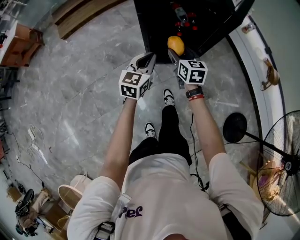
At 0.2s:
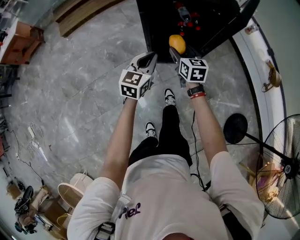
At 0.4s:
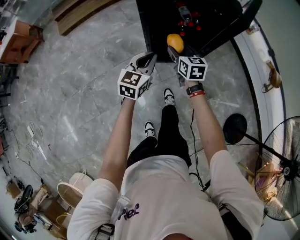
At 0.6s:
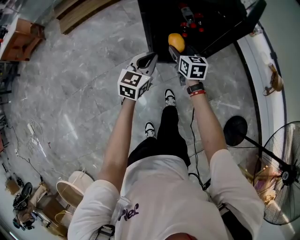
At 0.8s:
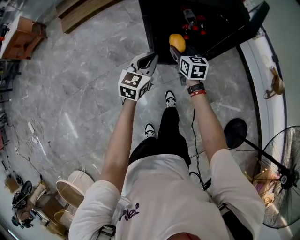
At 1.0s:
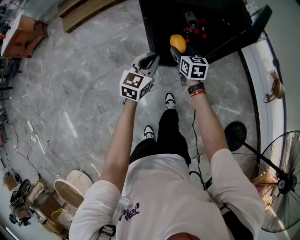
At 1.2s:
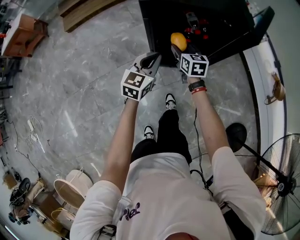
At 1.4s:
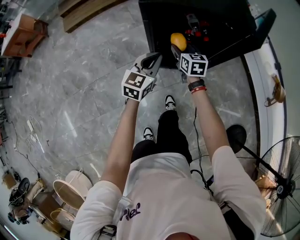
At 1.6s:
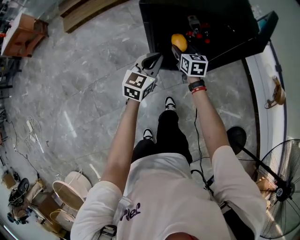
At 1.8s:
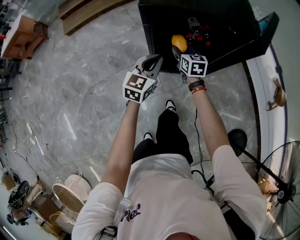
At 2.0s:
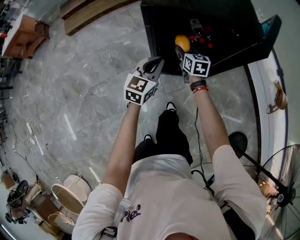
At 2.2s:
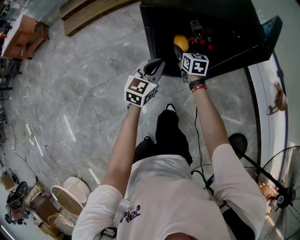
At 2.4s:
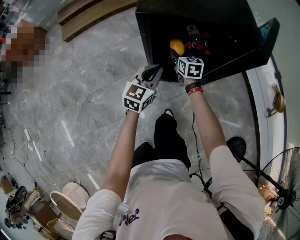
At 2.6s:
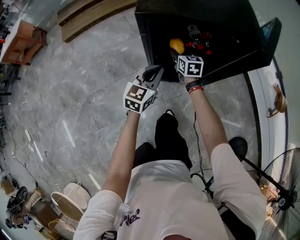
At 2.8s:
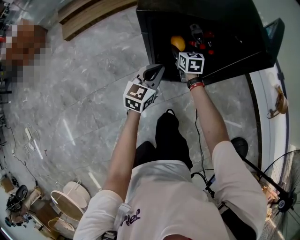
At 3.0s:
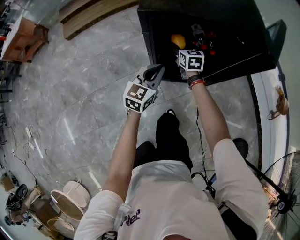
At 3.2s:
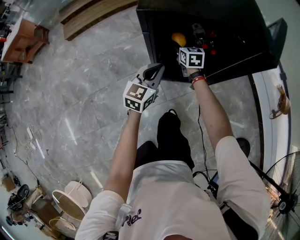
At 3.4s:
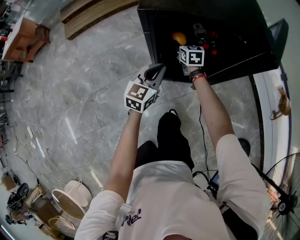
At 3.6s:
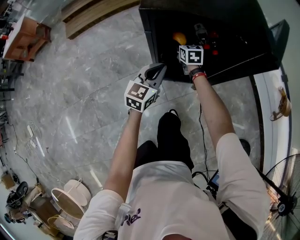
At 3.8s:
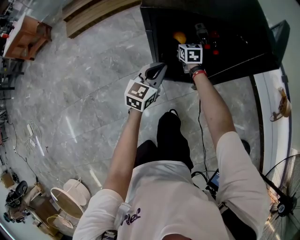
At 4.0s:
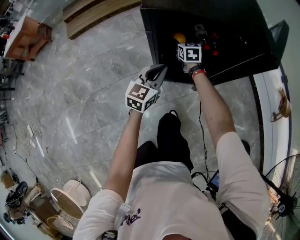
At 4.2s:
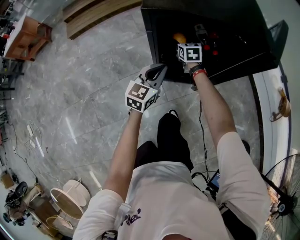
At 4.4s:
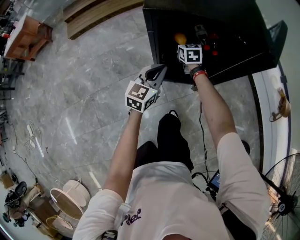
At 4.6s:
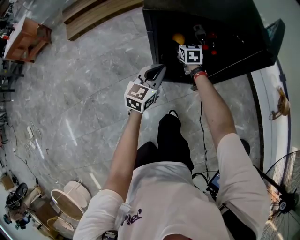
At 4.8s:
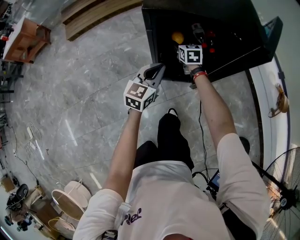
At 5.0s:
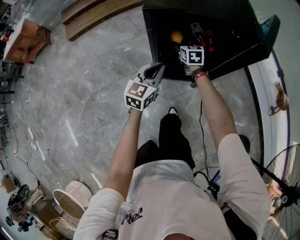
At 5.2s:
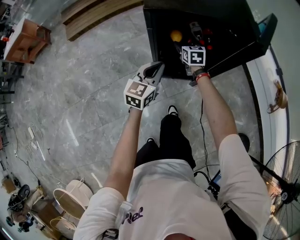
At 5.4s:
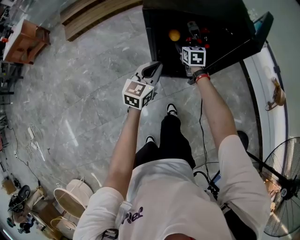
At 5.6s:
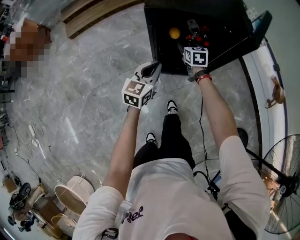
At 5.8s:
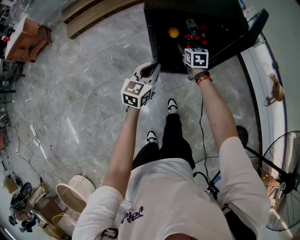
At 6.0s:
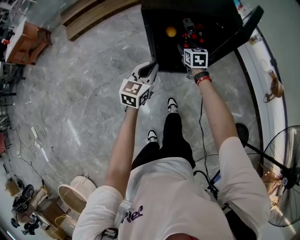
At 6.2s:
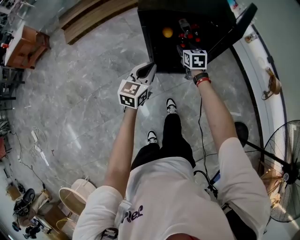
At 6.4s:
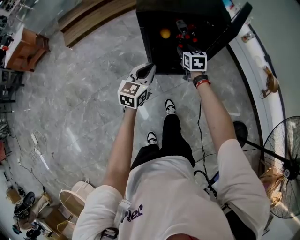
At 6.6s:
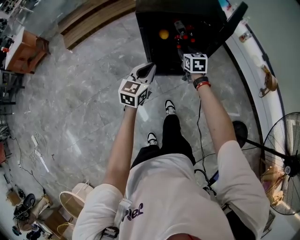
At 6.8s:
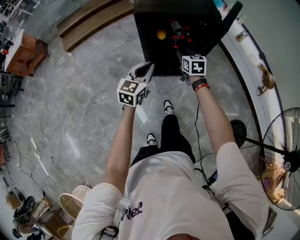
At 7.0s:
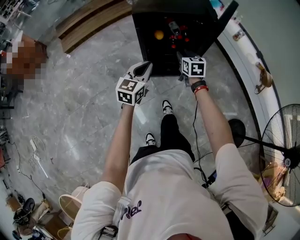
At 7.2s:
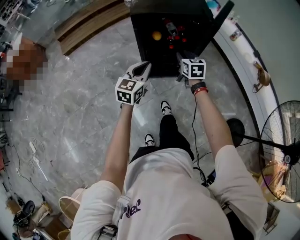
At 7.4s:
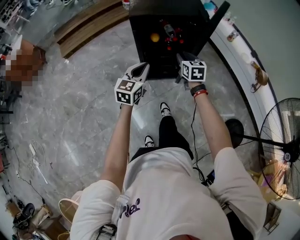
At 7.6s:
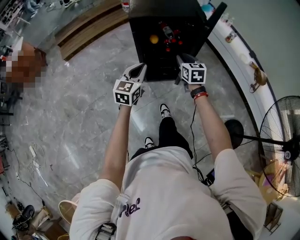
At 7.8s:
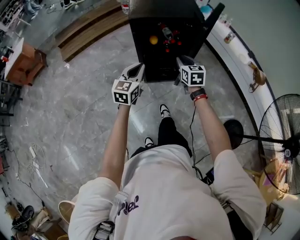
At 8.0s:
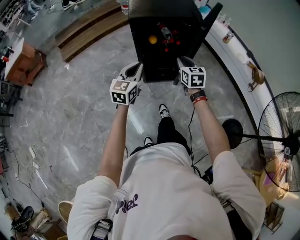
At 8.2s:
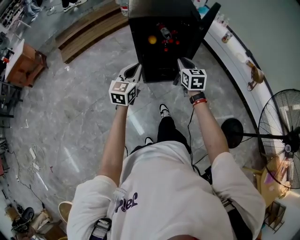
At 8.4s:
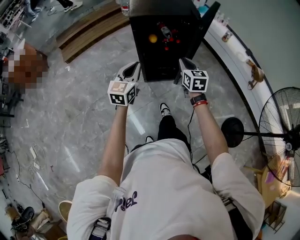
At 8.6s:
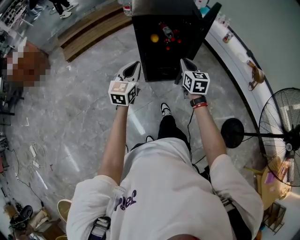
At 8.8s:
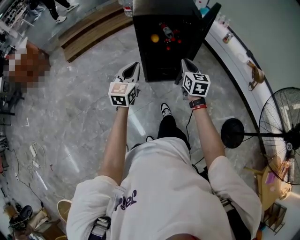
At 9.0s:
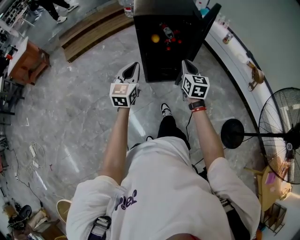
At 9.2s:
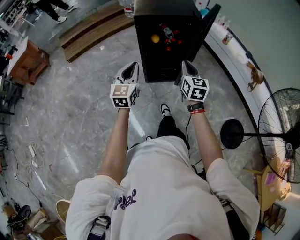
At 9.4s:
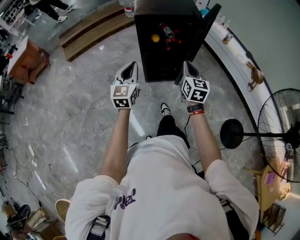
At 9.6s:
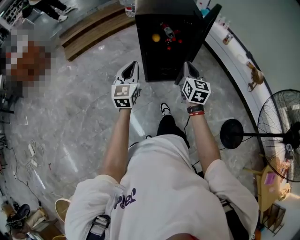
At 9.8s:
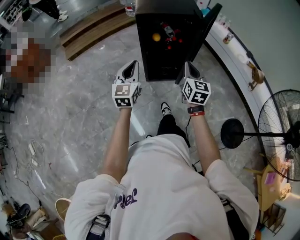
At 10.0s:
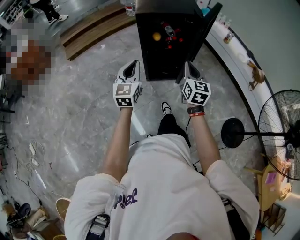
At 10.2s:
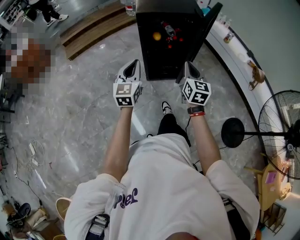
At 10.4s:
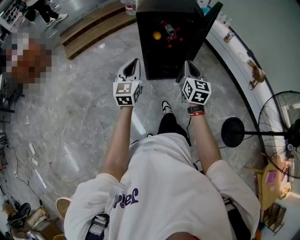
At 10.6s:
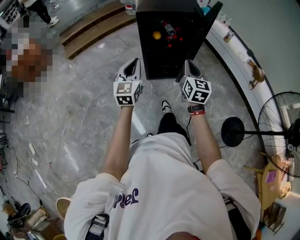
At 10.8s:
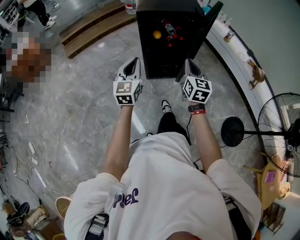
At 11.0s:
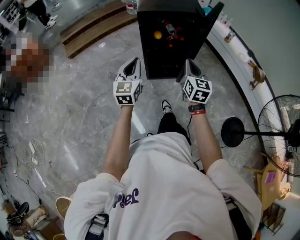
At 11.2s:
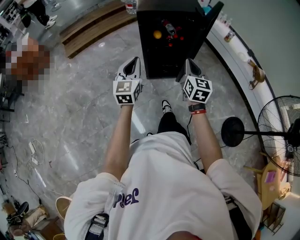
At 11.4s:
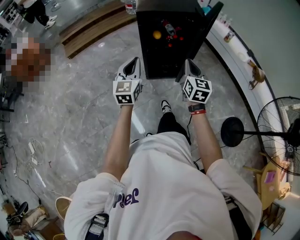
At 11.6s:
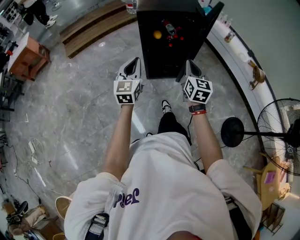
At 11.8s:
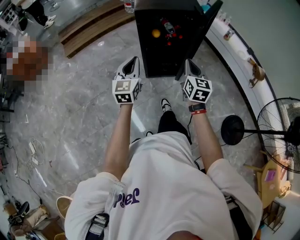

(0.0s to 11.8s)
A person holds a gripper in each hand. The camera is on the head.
0.0s - 1.4s: The left gripper goes roughly 10 cm forward. Meanwhile the right gripper shifts some 15 cm forward and downward.
1.4s - 3.0s: The left gripper travels downward and forward by approximately 10 cm. The right gripper goes about 15 cm forward and downward.
3.0s - 4.4s: The grippers move only a little.
4.4s - 6.0s: The right gripper is displaced backward, upward and to the right by some 20 cm. The left gripper shifts roughly 15 cm upward and backward.
6.0s - 7.4s: The right gripper moves backward, upward and to the right, about 20 cm, and closes its fingers; the left gripper heads backward and upward, covering some 10 cm.
7.4s - 8.8s: Both grippers travel together backward and upward, some 15 cm.
8.8s - 10.4s: The right gripper shifts by about 5 cm.
10.4s - 11.8s: The two grippers keep their place.

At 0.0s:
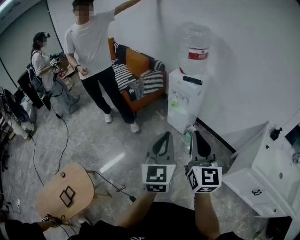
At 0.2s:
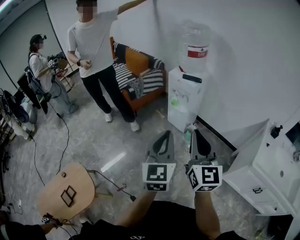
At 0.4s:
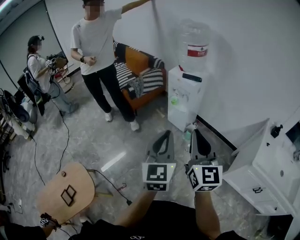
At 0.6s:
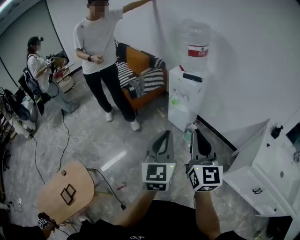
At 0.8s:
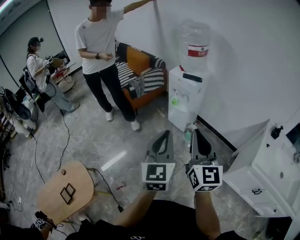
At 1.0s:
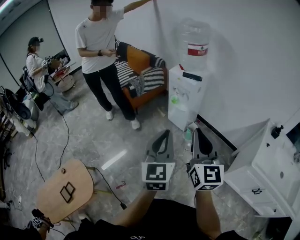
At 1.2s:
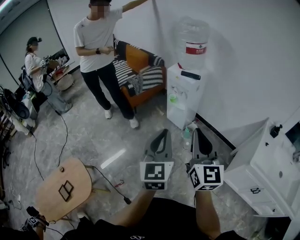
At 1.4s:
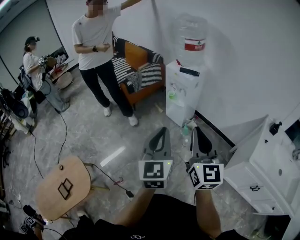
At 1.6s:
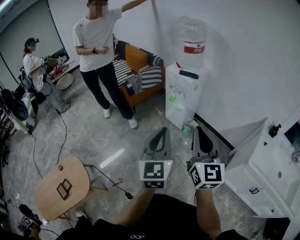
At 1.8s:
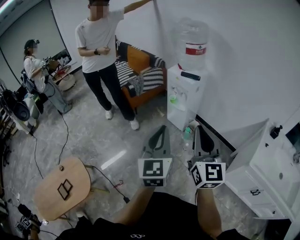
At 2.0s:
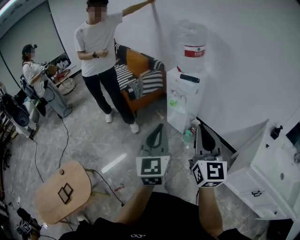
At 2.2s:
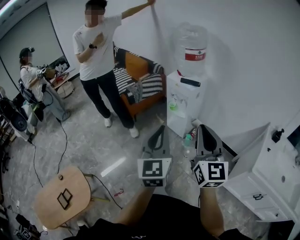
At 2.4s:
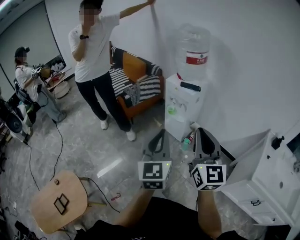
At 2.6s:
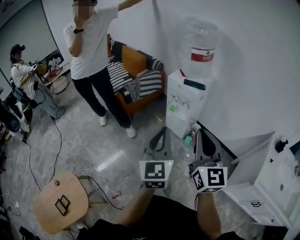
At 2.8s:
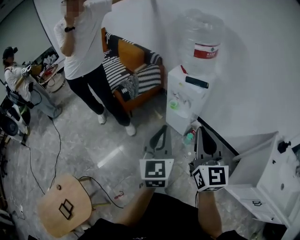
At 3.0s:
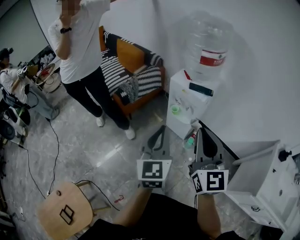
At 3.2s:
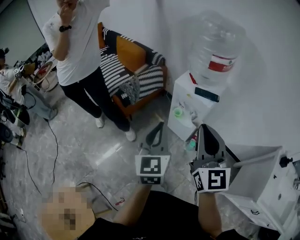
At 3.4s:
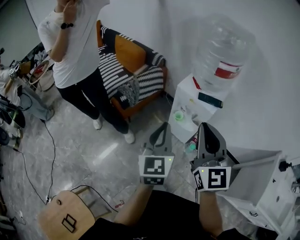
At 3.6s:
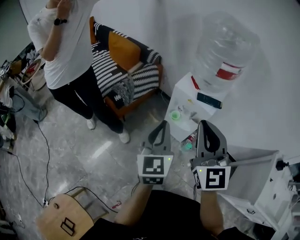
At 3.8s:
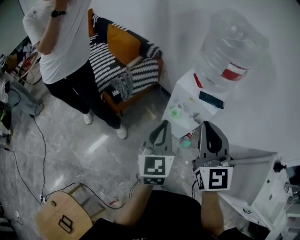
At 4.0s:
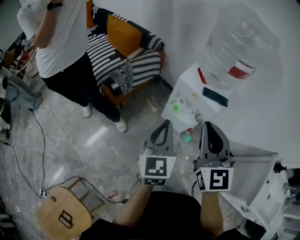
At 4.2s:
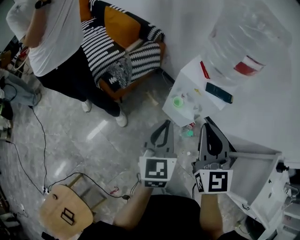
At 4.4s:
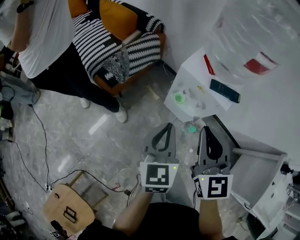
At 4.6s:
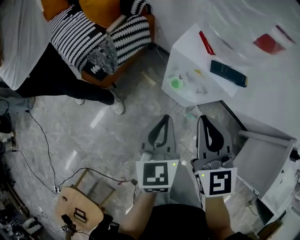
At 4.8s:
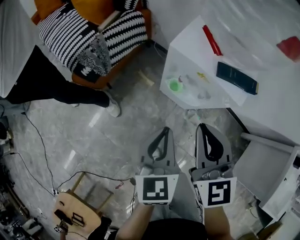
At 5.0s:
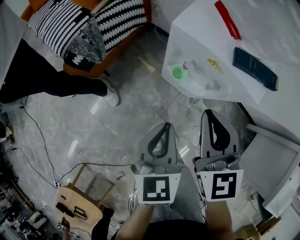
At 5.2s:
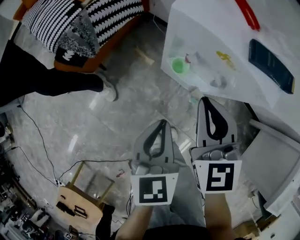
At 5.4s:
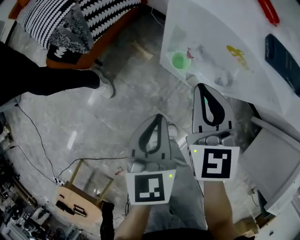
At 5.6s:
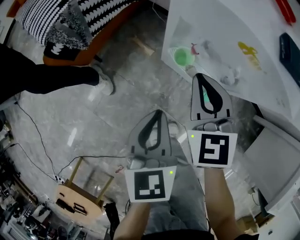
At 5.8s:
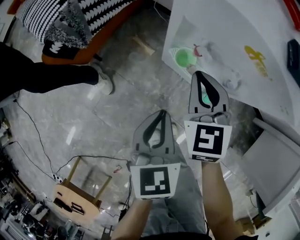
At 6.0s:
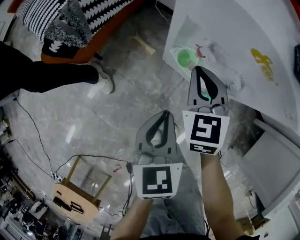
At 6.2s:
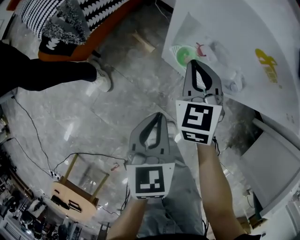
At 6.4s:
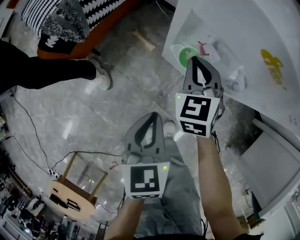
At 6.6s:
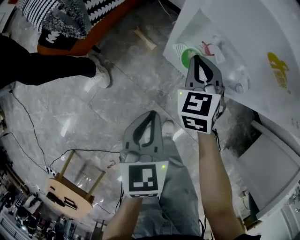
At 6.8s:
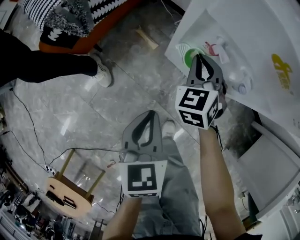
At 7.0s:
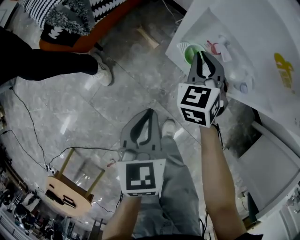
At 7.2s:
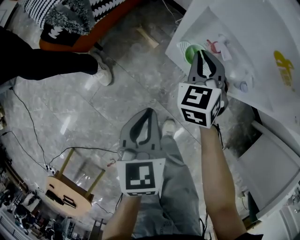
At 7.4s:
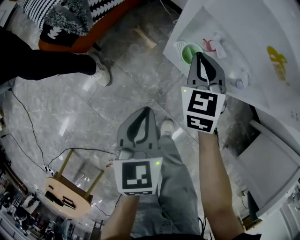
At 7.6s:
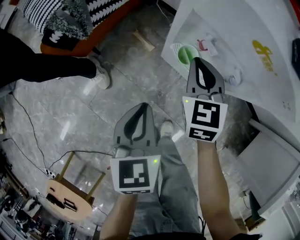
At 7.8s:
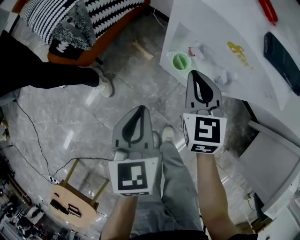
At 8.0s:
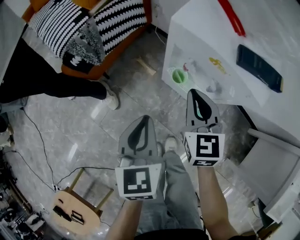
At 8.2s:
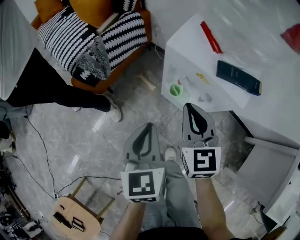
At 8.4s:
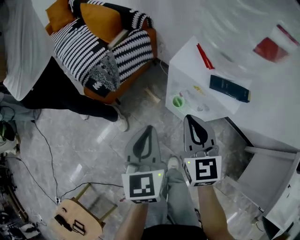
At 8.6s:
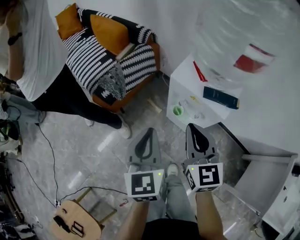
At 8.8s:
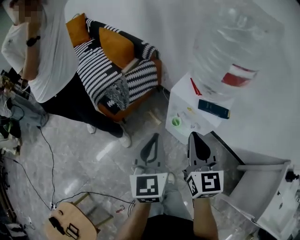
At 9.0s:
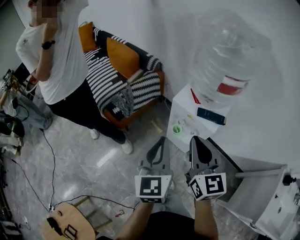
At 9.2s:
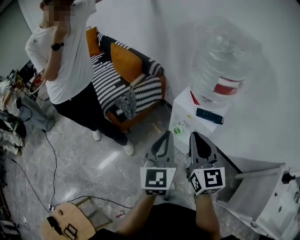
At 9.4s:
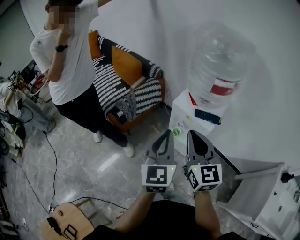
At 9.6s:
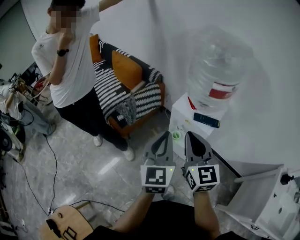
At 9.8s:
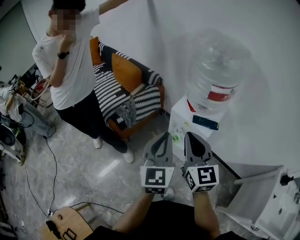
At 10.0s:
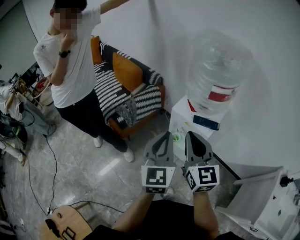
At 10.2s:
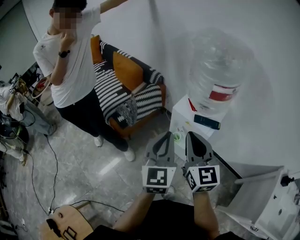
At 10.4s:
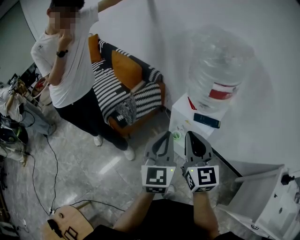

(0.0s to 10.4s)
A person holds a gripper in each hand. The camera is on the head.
0.0s - 1.4s: There are only small adjustments of the grippers.
1.4s - 3.0s: The grippers both shift forward by some 30 cm.
3.0s - 4.4s: Both grippers move forward and downward, roughly 25 cm.
4.4s - 6.0s: The left gripper goes roughly 30 cm downward, and changes its angle by some 20 degrees; the right gripper is displaced downward and forward by about 40 cm, and turns by approximately 20 degrees.
6.0s - 7.4s: The left gripper shifts roughly 5 cm to the left.
7.4s - 9.0s: The right gripper heads upward and backward, covering some 50 cm, and changes its angle by roughly 40 degrees; the left gripper goes roughly 40 cm upward, and angles its fingers upward, by some 30 degrees.
9.0s - 10.4s: The grippers both shift upward by roughly 5 cm.

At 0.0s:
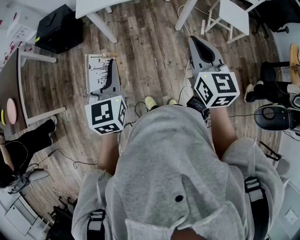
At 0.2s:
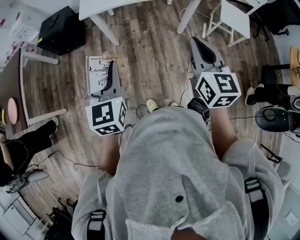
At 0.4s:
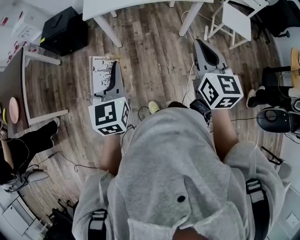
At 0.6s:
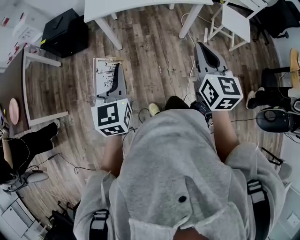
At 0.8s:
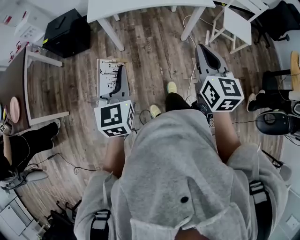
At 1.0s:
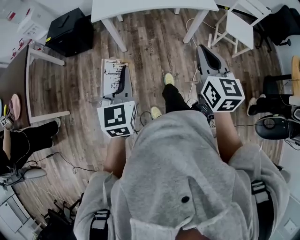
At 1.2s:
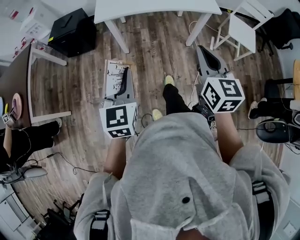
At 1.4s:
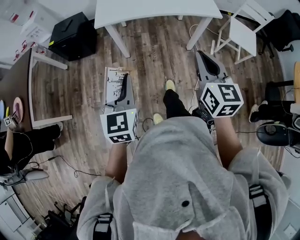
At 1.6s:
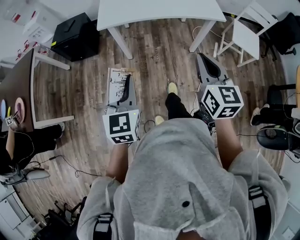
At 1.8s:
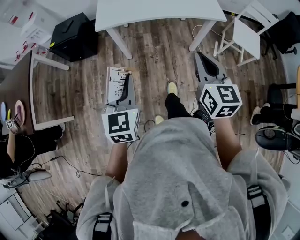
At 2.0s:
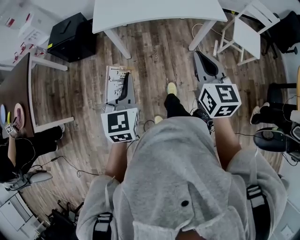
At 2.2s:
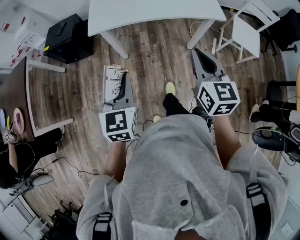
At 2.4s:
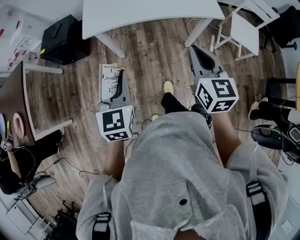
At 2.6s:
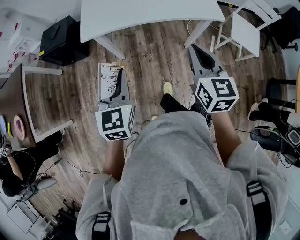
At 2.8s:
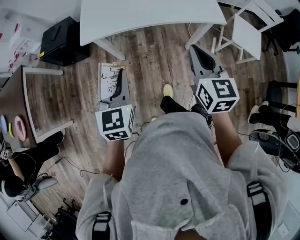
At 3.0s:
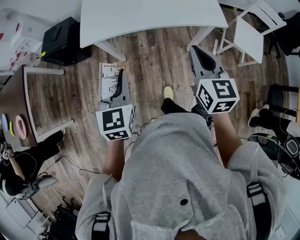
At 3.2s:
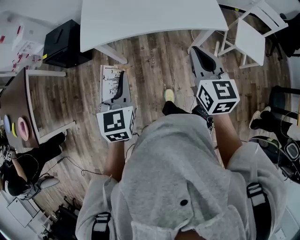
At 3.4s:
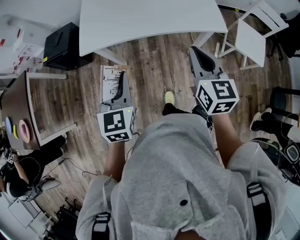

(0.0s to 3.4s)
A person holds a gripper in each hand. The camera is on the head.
0.0s - 1.6s: The right gripper shifts some 5 cm forward.
1.6s - 3.4s: Both grippers travel together forward, about 20 cm.
